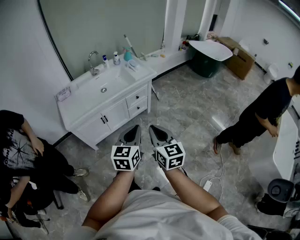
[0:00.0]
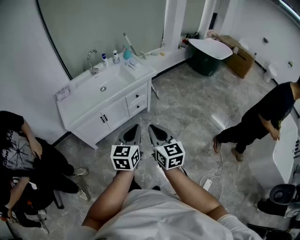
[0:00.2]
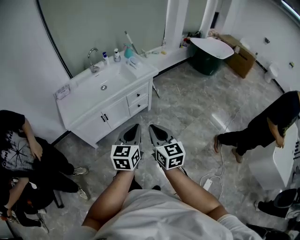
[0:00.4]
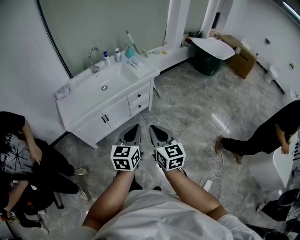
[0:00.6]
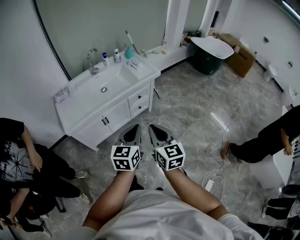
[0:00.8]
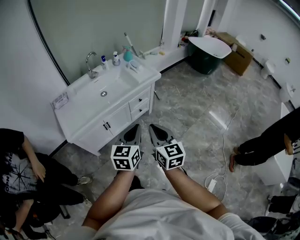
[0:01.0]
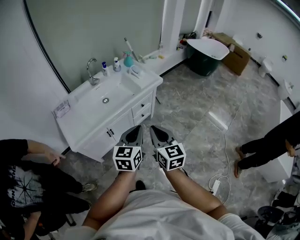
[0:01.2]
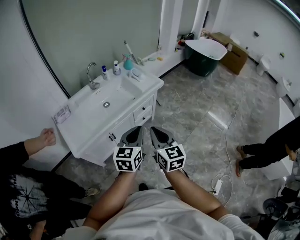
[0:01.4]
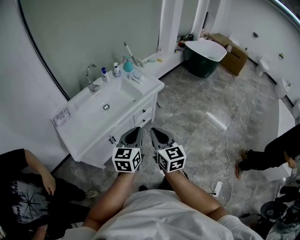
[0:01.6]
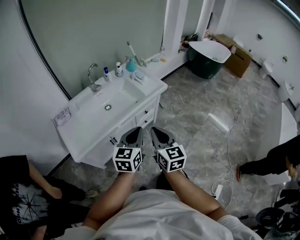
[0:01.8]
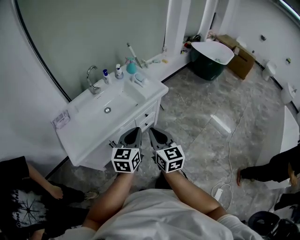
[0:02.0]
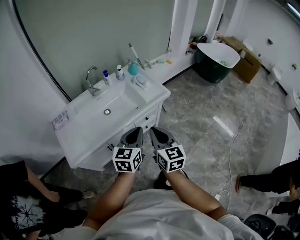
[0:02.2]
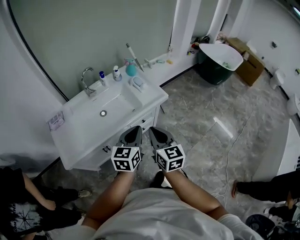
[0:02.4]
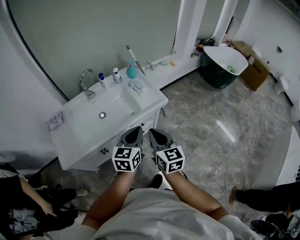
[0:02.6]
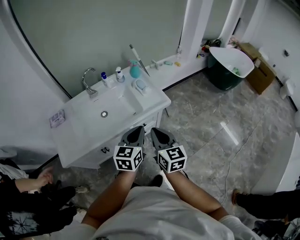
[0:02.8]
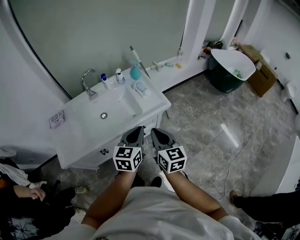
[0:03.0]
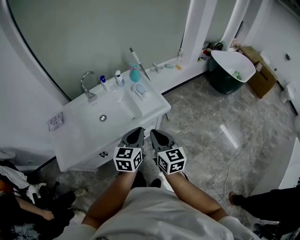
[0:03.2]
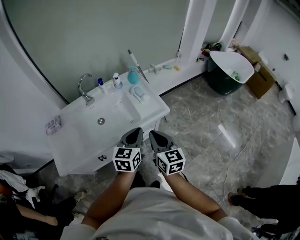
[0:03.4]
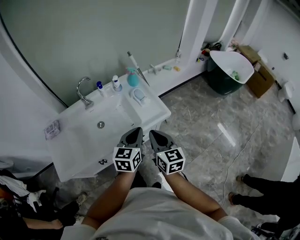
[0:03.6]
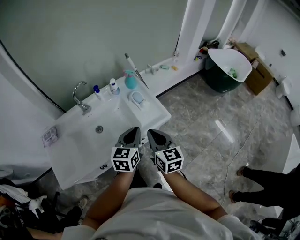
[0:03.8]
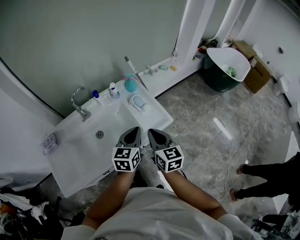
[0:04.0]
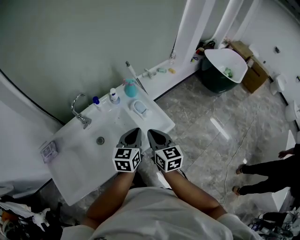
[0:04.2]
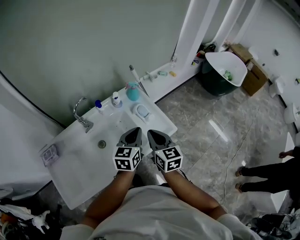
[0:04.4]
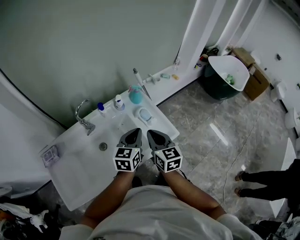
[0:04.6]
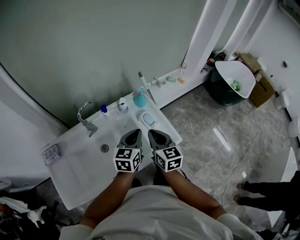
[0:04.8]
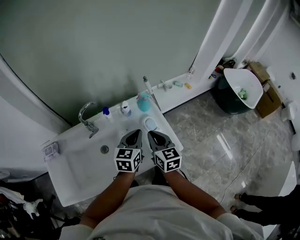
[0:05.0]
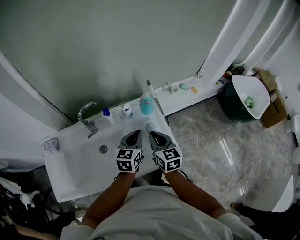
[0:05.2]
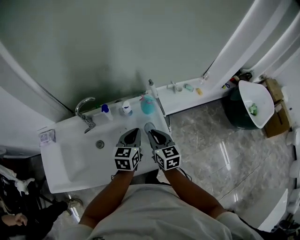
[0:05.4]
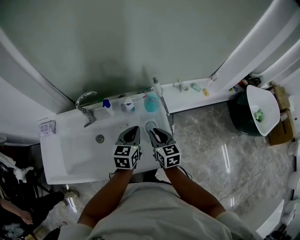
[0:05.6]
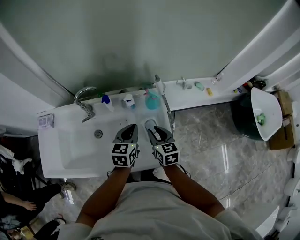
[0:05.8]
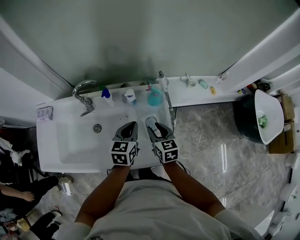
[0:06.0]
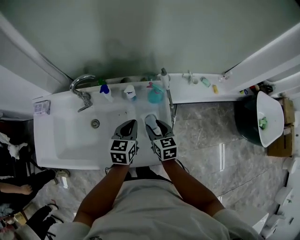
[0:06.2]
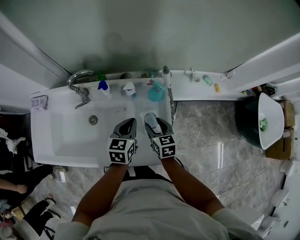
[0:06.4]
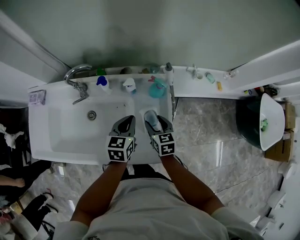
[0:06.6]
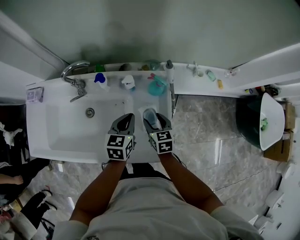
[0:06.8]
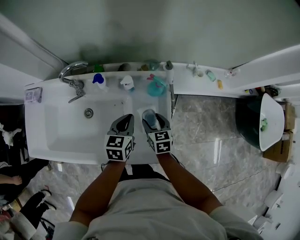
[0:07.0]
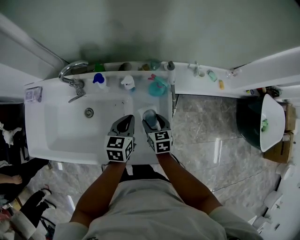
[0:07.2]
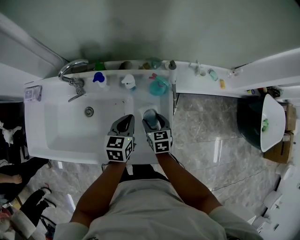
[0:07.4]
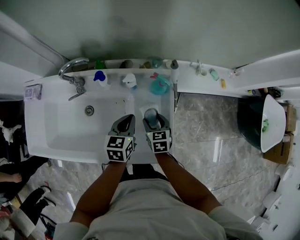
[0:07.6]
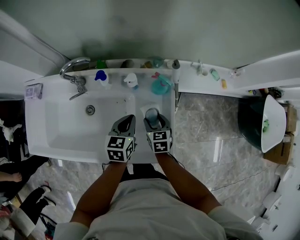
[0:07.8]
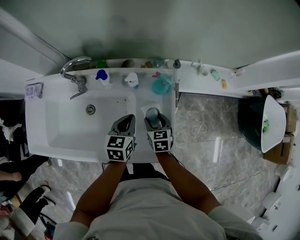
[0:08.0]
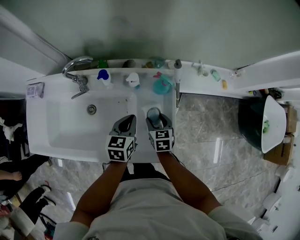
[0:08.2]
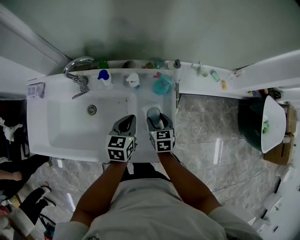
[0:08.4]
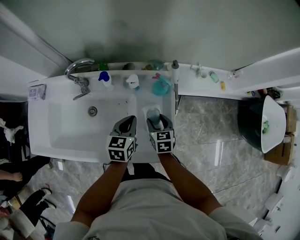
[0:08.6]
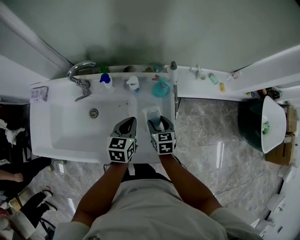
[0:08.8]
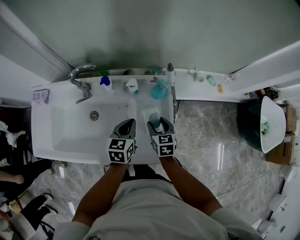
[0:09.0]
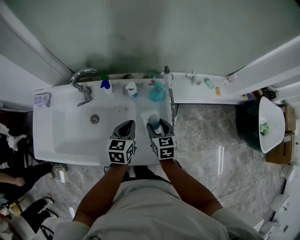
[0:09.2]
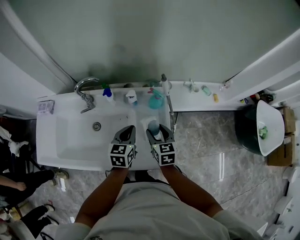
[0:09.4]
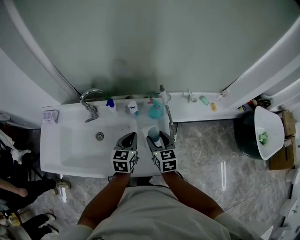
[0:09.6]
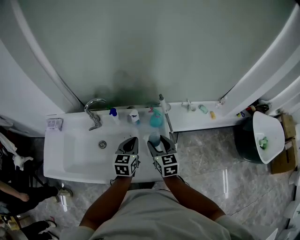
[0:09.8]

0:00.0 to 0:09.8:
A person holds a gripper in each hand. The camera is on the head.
0:00.0 to 0:01.4: The two grippers go some 20 cm forward and to the left.
0:01.4 to 0:02.8: Both grippers travel together forward, some 25 cm.
0:02.8 to 0:04.2: Both grippers move forward, roughly 20 cm.
0:04.2 to 0:05.6: The right gripper goes some 20 cm forward and downward, and turns by approximately 30 degrees. The left gripper shifts approximately 20 cm forward, and rotates about 30 degrees.
0:05.6 to 0:07.0: Both grippers move downward, roughly 15 cm. The right gripper opens its fingers.
0:07.0 to 0:08.4: There are only small adjustments of the grippers.
0:08.4 to 0:09.8: The left gripper is displaced upward by about 10 cm. The right gripper travels upward by about 20 cm.

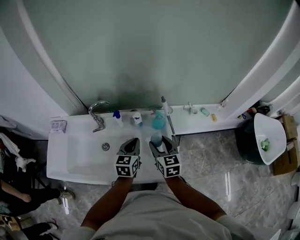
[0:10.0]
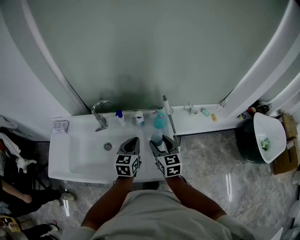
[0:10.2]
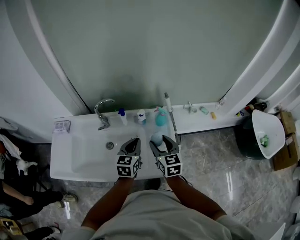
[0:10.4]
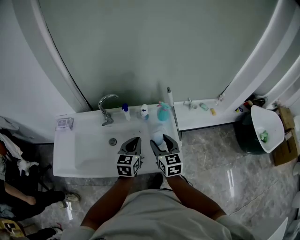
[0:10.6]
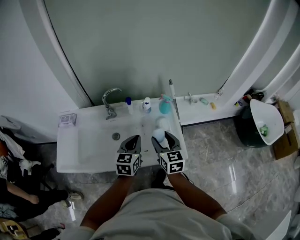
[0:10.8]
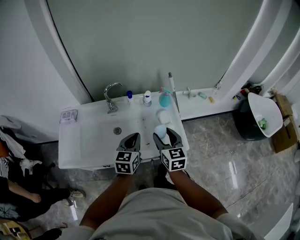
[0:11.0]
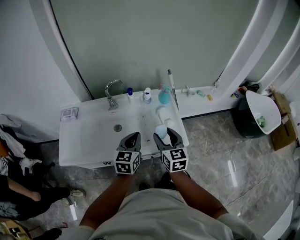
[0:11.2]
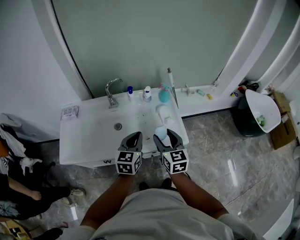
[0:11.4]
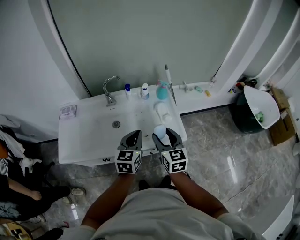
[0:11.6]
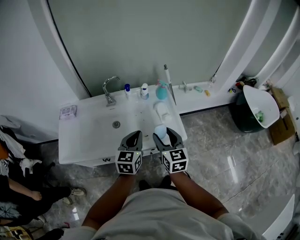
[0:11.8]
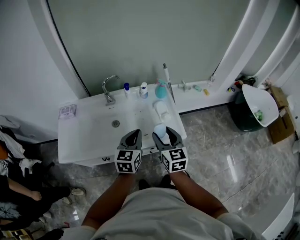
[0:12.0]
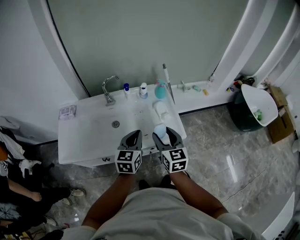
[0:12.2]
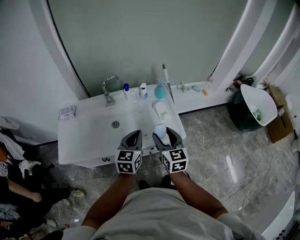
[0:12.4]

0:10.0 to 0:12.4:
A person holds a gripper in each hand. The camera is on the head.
0:10.0 to 0:11.2: The grippers both shift backward and to the left by roughly 20 cm.
0:11.2 to 0:12.4: The right gripper ends up approximately 5 cm from where it was.

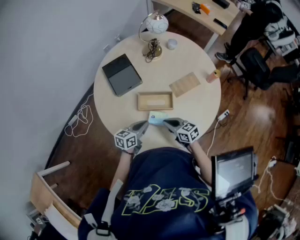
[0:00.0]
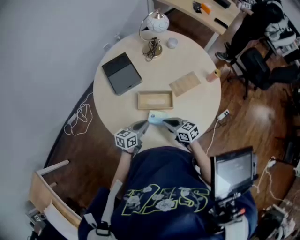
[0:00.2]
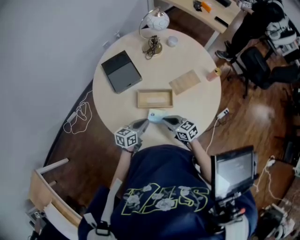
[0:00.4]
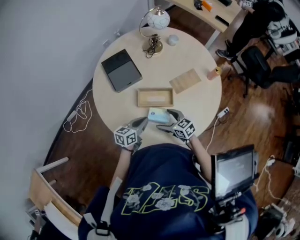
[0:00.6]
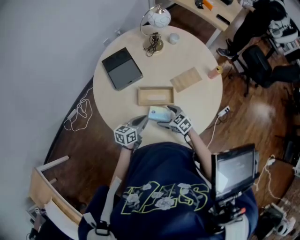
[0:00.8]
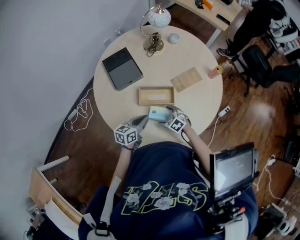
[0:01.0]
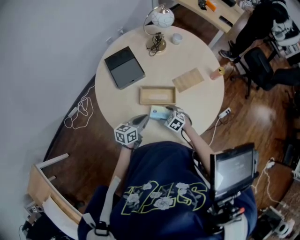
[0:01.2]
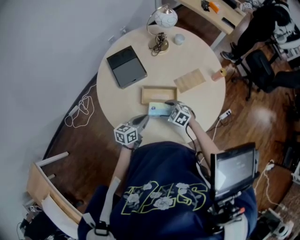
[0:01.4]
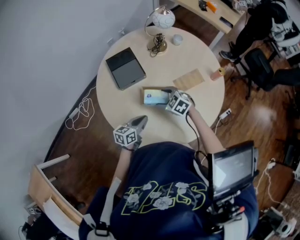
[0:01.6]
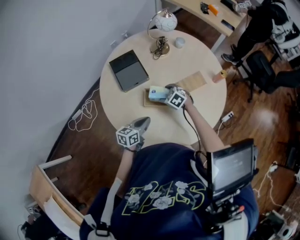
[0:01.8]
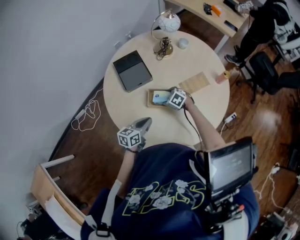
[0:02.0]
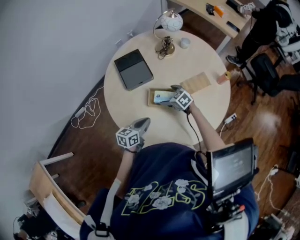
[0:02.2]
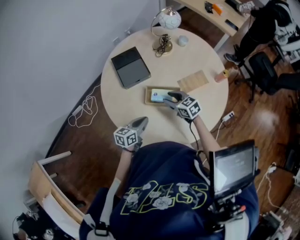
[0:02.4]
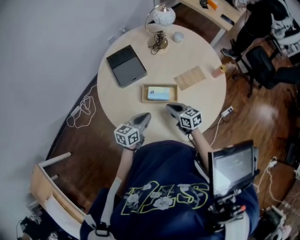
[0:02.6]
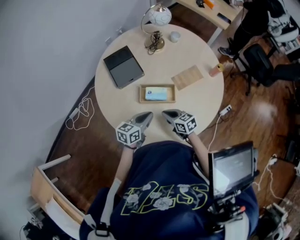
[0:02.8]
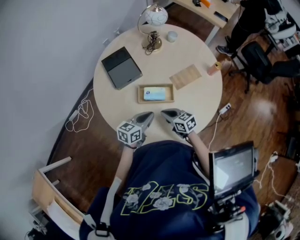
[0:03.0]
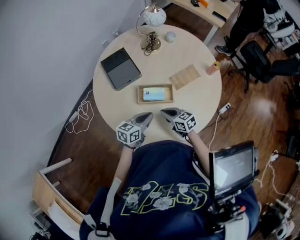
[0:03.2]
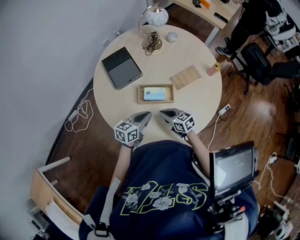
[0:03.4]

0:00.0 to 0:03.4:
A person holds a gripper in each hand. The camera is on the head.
0:00.0 to 0:01.6: The right gripper shifts some 10 cm forward, moves some 10 cm downward and comes back, rotates some 40 degrees, and opens.
0:01.6 to 0:03.4: The left gripper changes place by roughly 5 cm; the right gripper moves up and down over about 15 cm, changing direction 2 times, changes its angle by approximately 40 degrees, and closes its fingers.

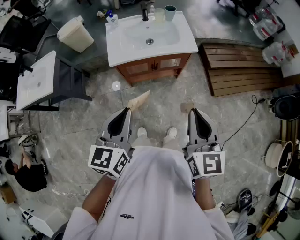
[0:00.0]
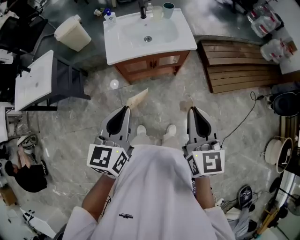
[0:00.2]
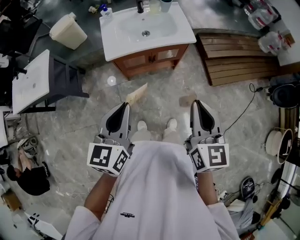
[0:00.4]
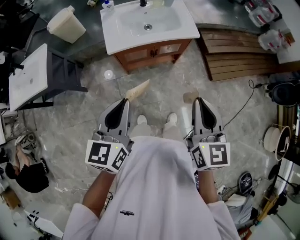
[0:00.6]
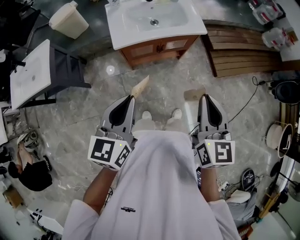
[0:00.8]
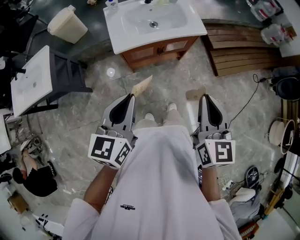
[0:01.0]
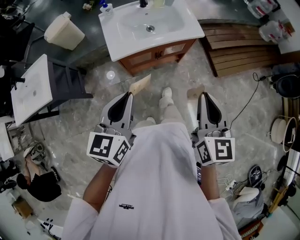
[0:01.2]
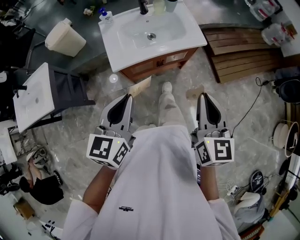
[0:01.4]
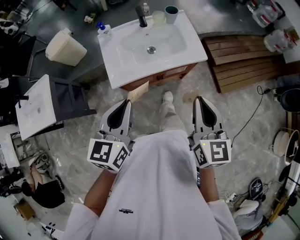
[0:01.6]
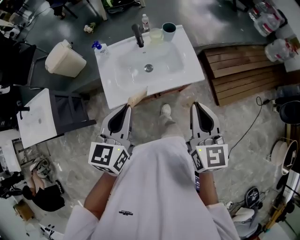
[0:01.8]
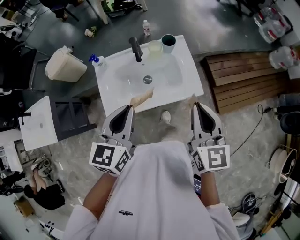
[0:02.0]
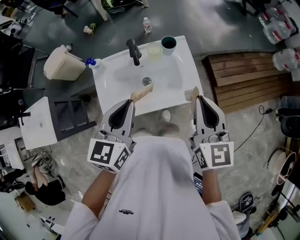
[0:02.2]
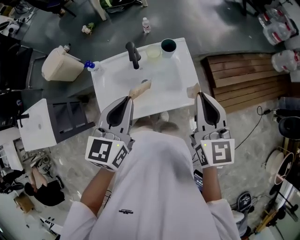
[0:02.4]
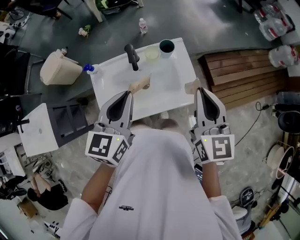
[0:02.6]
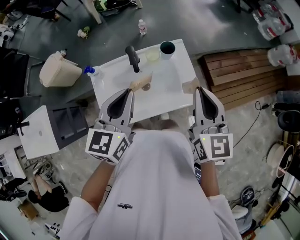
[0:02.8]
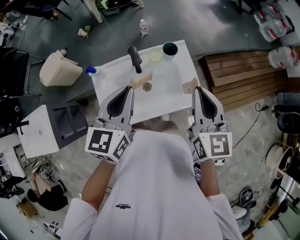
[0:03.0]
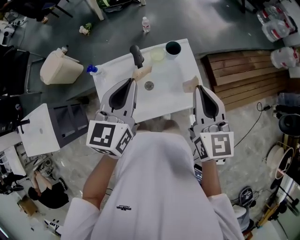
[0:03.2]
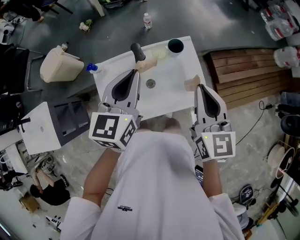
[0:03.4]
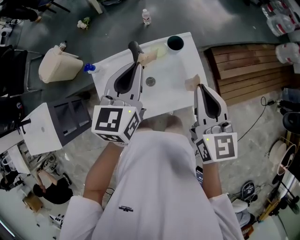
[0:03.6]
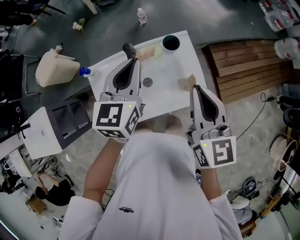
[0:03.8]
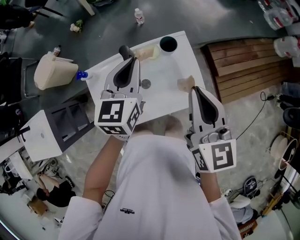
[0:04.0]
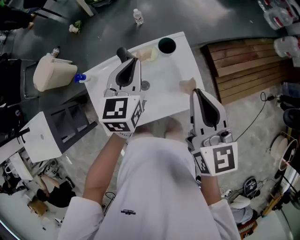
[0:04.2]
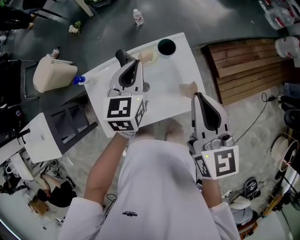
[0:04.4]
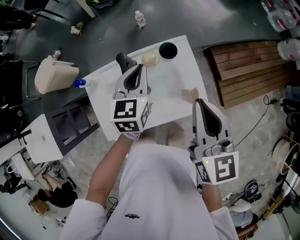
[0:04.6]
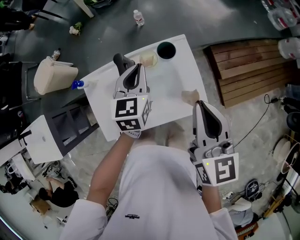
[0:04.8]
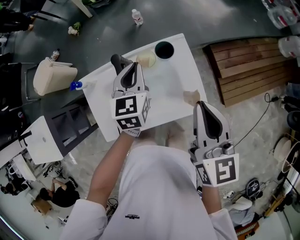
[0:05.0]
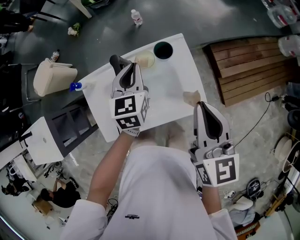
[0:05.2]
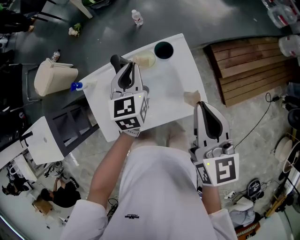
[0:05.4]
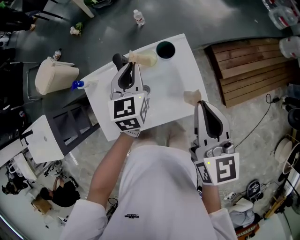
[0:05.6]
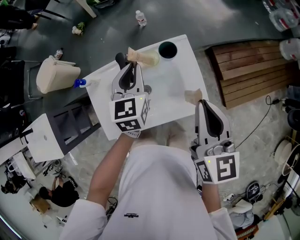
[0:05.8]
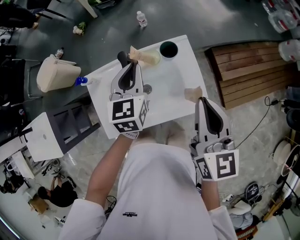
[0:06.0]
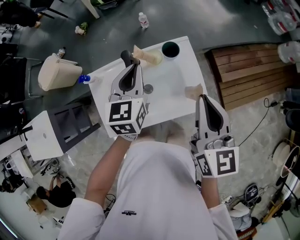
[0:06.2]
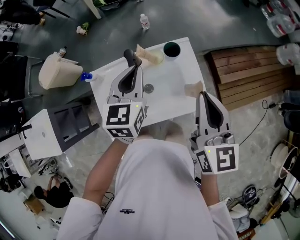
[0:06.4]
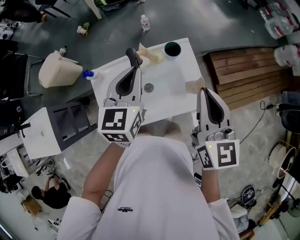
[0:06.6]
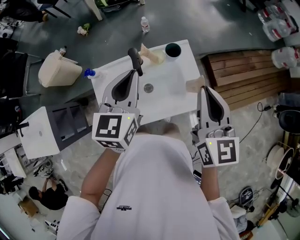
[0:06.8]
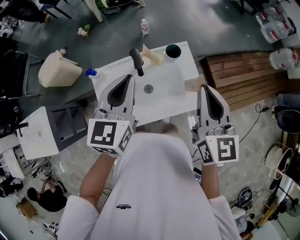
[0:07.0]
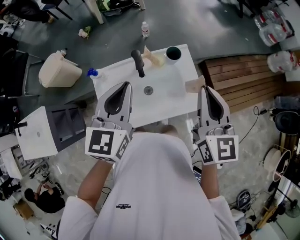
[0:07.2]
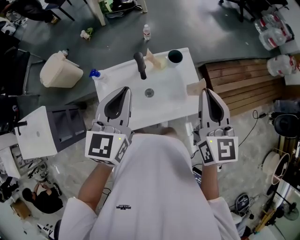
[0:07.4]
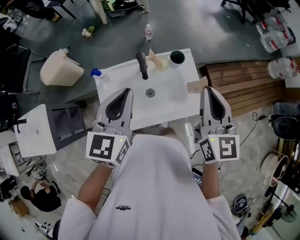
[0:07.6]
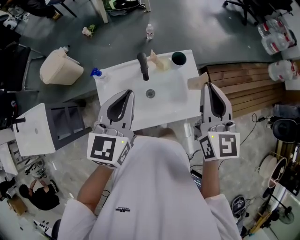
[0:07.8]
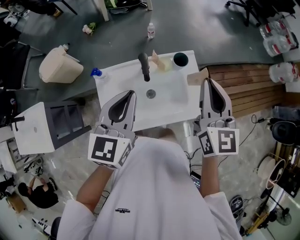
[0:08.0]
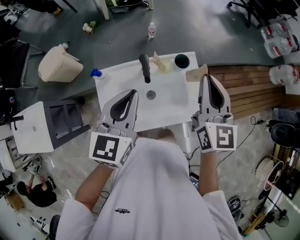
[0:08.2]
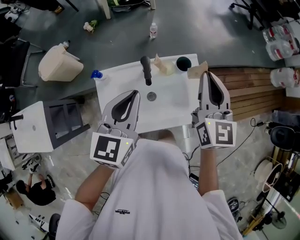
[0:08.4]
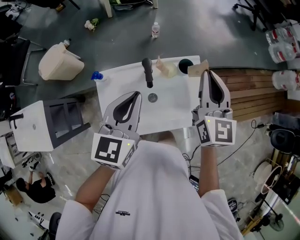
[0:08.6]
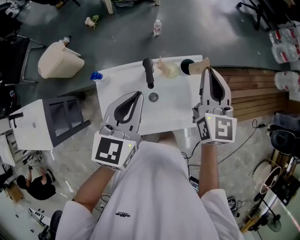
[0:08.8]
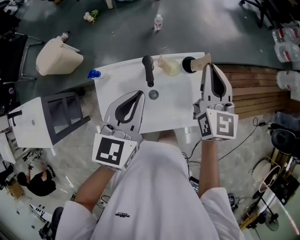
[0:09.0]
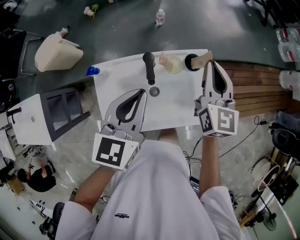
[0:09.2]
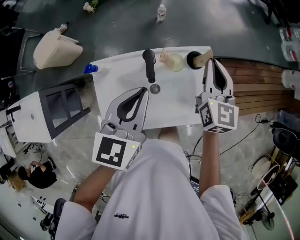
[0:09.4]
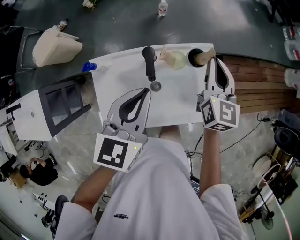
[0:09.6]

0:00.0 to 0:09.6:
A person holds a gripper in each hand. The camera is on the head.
0:00.0 to 0:01.6: The right gripper travels forward by about 20 cm, while the left gripper is displaced forward and to the left by roughly 20 cm.
0:01.6 to 0:03.2: The two grippers go about 35 cm forward.
0:03.2 to 0:04.8: The right gripper shifts by about 5 cm; the left gripper travels downward and forward by about 20 cm.
0:04.8 to 0:06.4: The left gripper heads upward, covering approximately 10 cm.
0:06.4 to 0:08.0: The right gripper changes place by approximately 5 cm; the left gripper travels backward, upward and to the left by about 15 cm.
0:08.0 to 0:09.6: The left gripper is displaced downward and forward by approximately 10 cm; the right gripper is displaced downward and forward by about 20 cm.
